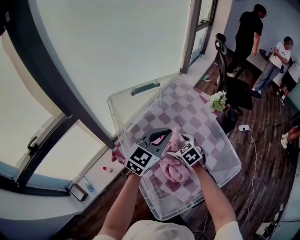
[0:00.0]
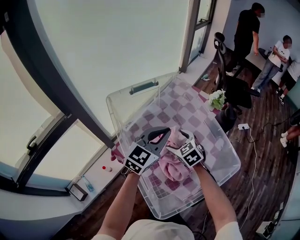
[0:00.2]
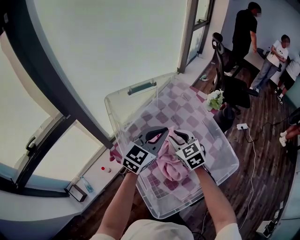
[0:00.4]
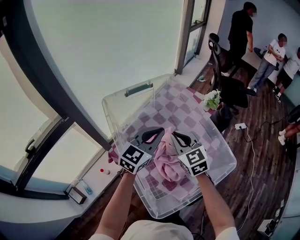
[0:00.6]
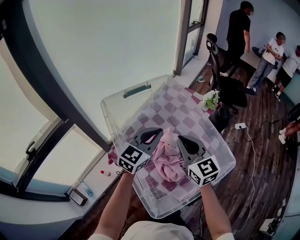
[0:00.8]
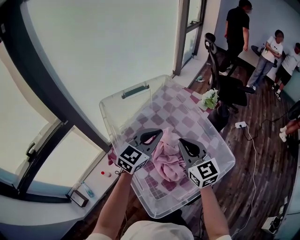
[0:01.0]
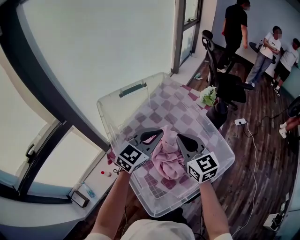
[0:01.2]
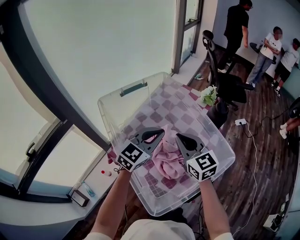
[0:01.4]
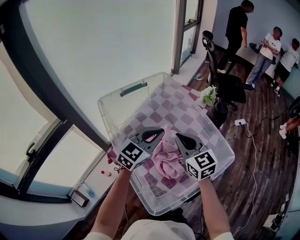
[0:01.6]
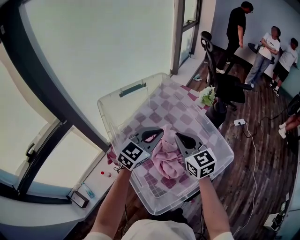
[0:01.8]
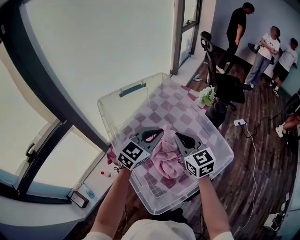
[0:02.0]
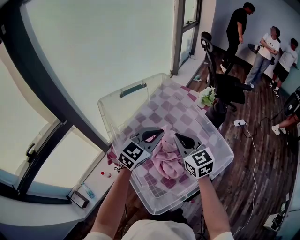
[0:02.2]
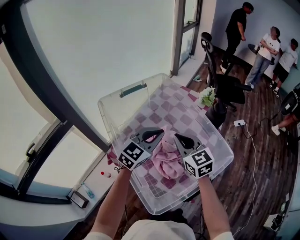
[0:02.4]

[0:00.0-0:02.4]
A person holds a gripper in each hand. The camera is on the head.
0:00.0 to 0:01.2: The right gripper goes roughly 20 cm upward, tips its fingers upward by some 40 degrees, and closes.
0:01.2 to 0:02.4: The grippers make only small movements.

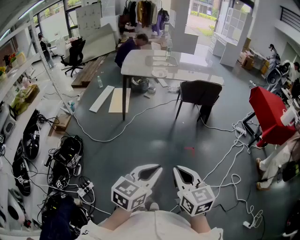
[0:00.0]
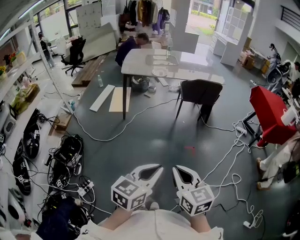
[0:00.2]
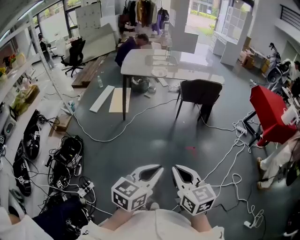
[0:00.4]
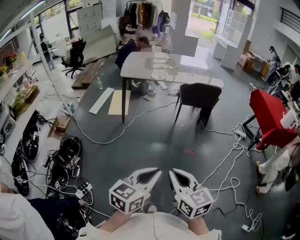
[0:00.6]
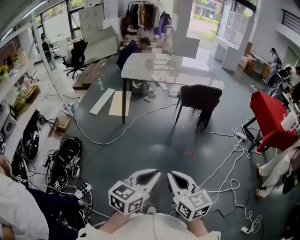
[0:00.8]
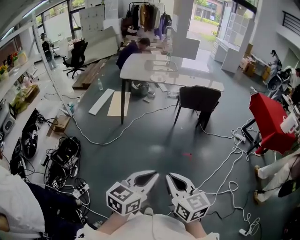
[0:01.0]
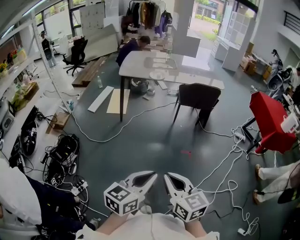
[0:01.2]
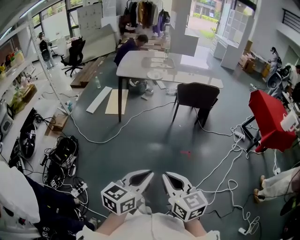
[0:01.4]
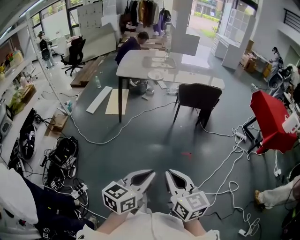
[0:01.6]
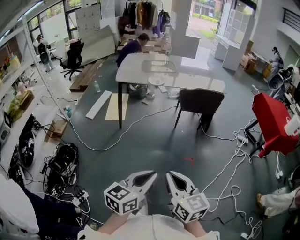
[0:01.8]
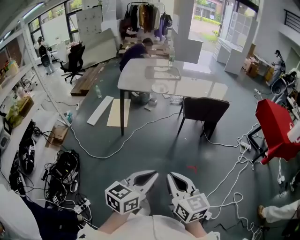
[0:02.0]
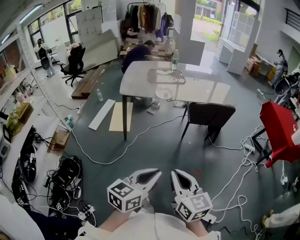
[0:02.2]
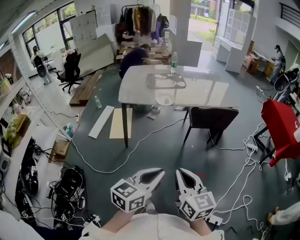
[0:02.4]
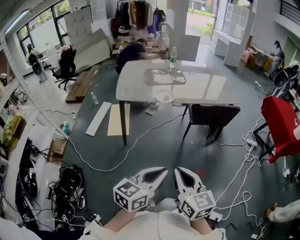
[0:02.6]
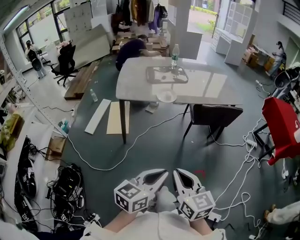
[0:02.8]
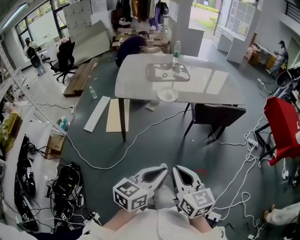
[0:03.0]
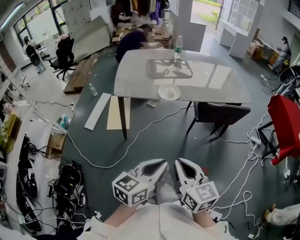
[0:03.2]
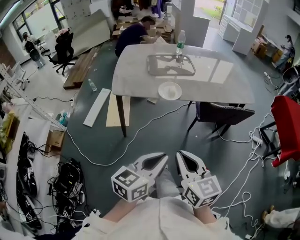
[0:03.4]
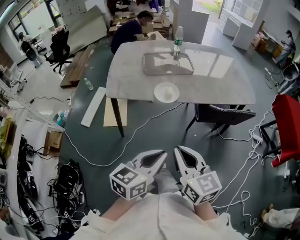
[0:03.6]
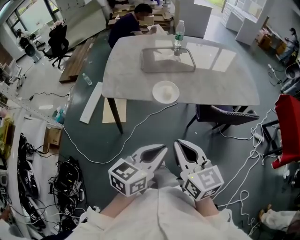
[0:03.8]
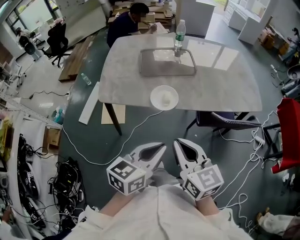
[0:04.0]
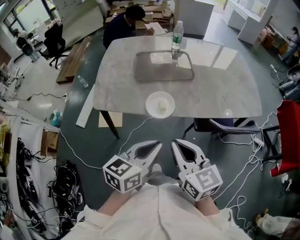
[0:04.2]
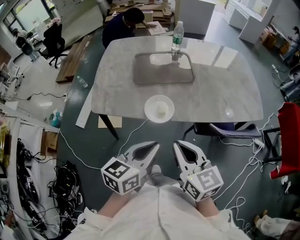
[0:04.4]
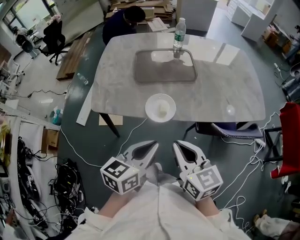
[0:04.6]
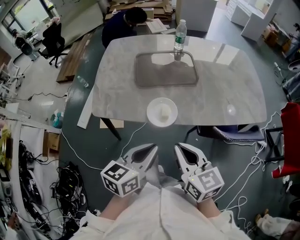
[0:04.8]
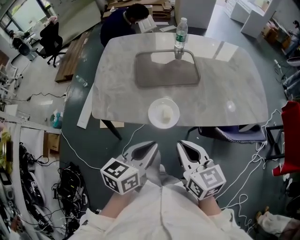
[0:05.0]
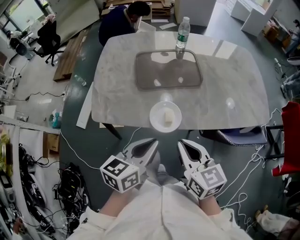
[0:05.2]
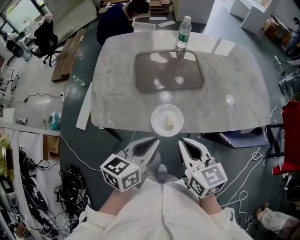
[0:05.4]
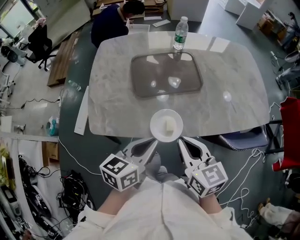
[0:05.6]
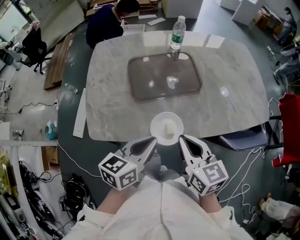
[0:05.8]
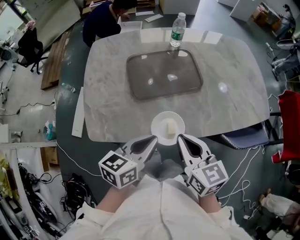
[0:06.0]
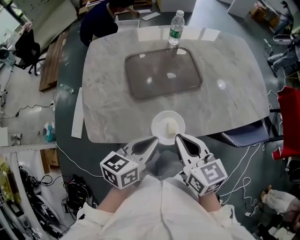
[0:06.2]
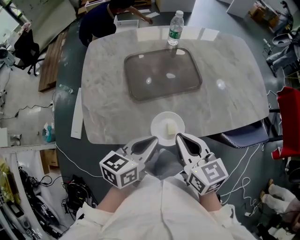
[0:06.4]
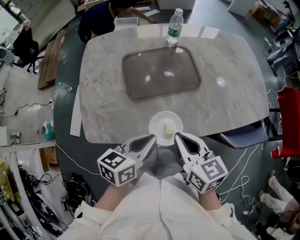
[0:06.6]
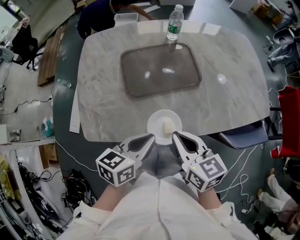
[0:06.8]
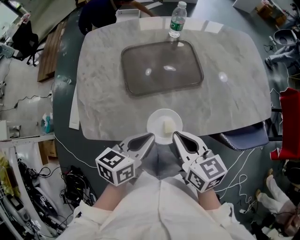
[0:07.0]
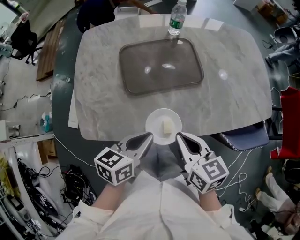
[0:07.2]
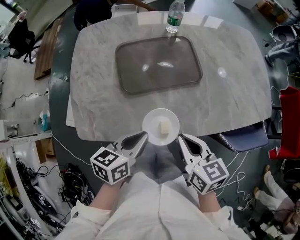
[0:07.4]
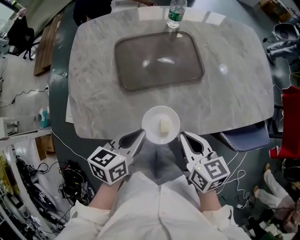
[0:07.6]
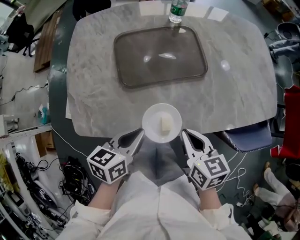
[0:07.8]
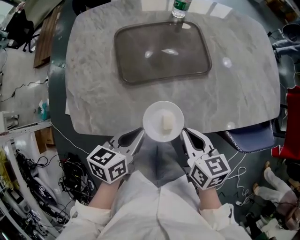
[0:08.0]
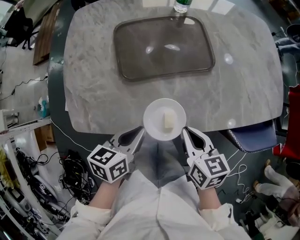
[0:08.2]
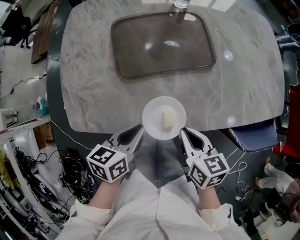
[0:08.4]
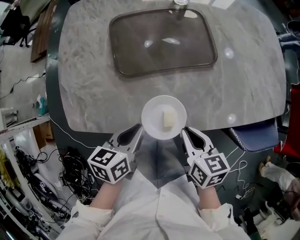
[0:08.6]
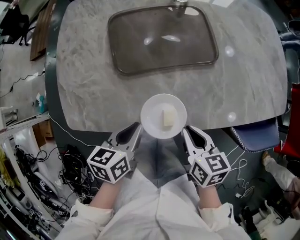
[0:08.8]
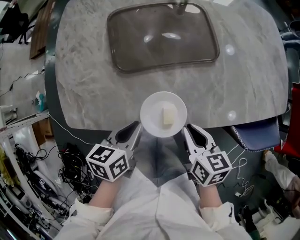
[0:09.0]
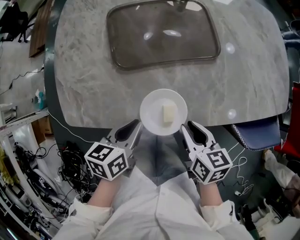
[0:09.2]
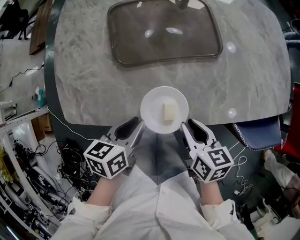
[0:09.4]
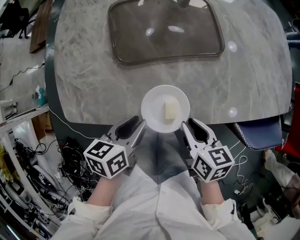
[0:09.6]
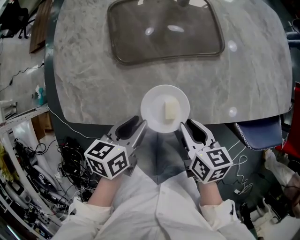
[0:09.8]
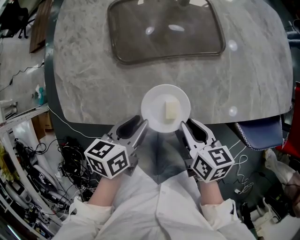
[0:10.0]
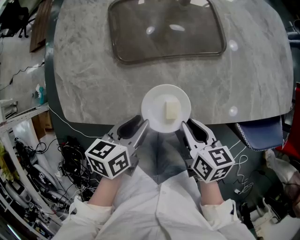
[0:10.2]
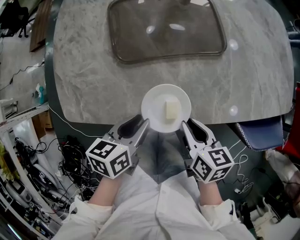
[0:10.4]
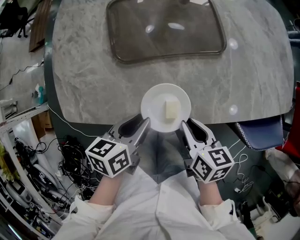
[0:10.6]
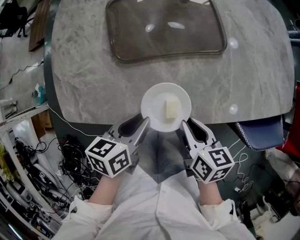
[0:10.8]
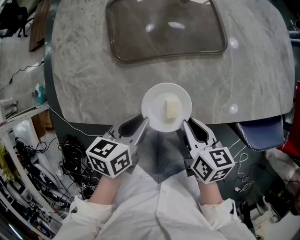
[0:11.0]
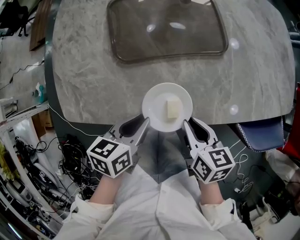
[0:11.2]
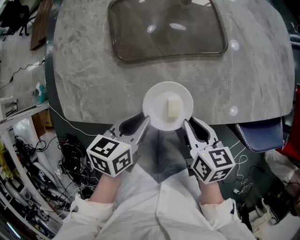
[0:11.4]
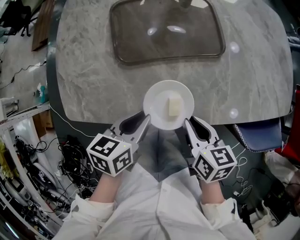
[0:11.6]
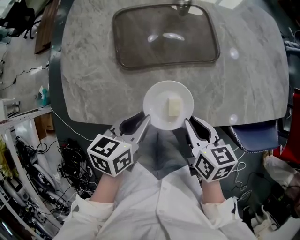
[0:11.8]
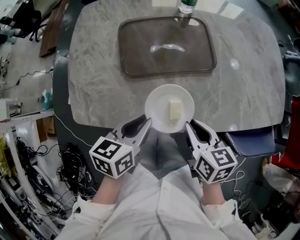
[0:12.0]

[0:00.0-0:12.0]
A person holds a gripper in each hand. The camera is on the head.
0:00.0 to 0:01.6: There are only small adjustments of the grippers.
0:01.6 to 0:03.0: Both grippers travel together forward and to the left, roughly 25 cm.
0:03.0 to 0:04.4: Both grippers move forward, roughly 25 cm.
0:04.4 to 0:06.0: The right gripper shifts approximately 10 cm forward. The left gripper shifts approximately 15 cm forward and to the left.
0:06.0 to 0:07.6: The right gripper travels downward by approximately 5 cm. Meanwhile the left gripper changes place by roughly 5 cm.
0:07.6 to 0:09.0: The grippers both shift downward by about 5 cm.
0:09.0 to 0:10.4: The left gripper opens.
0:10.4 to 0:12.0: The right gripper changes place by some 5 cm. The left gripper shifts some 5 cm upward.

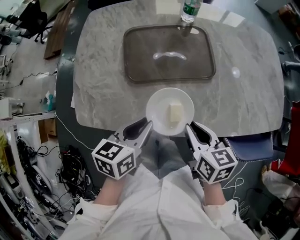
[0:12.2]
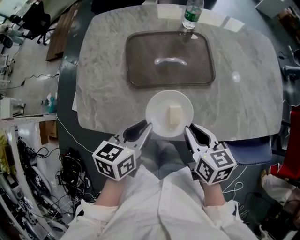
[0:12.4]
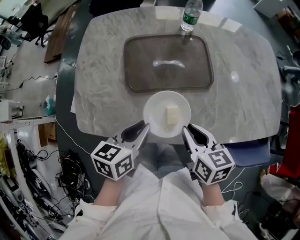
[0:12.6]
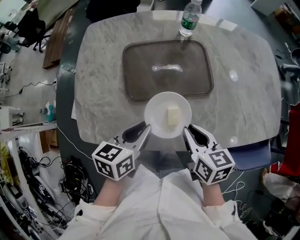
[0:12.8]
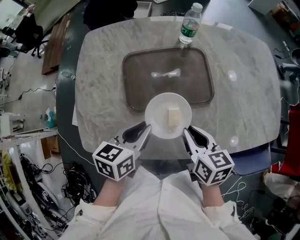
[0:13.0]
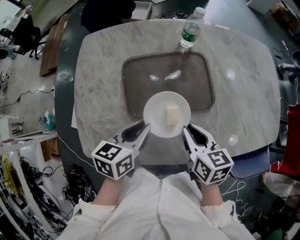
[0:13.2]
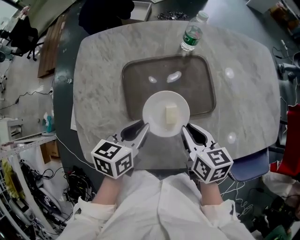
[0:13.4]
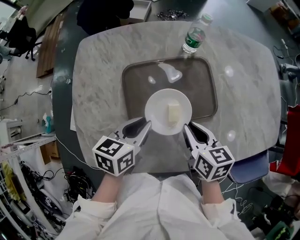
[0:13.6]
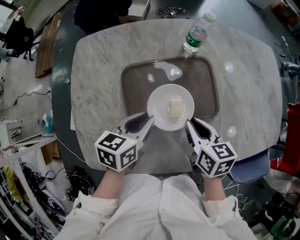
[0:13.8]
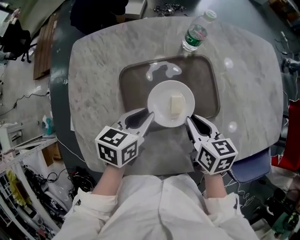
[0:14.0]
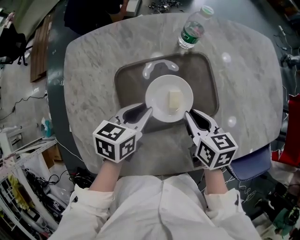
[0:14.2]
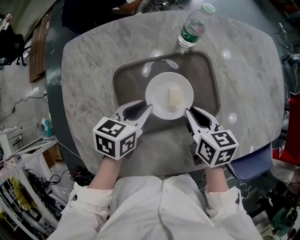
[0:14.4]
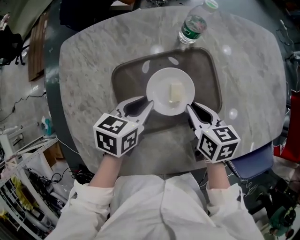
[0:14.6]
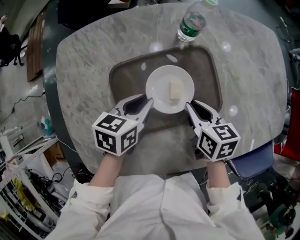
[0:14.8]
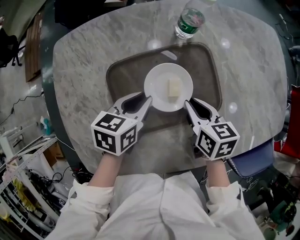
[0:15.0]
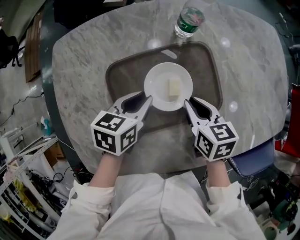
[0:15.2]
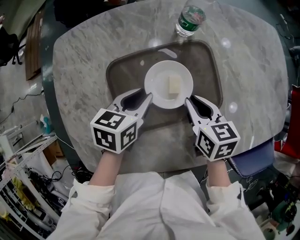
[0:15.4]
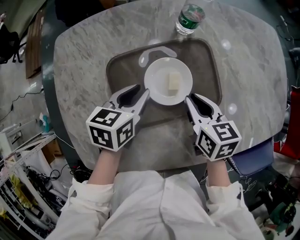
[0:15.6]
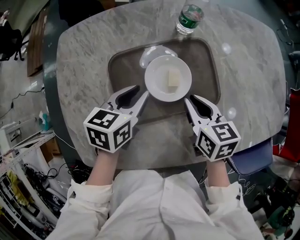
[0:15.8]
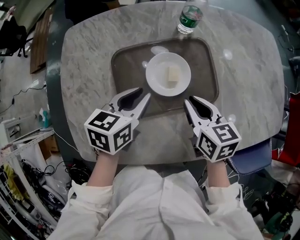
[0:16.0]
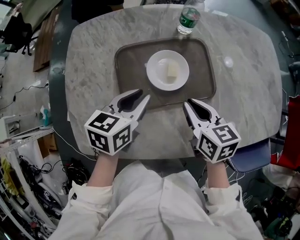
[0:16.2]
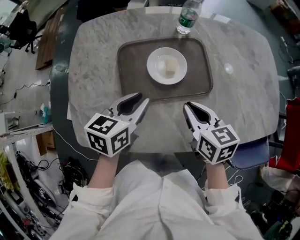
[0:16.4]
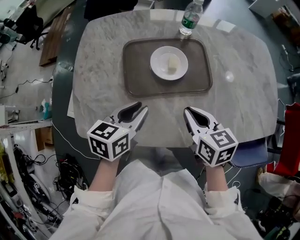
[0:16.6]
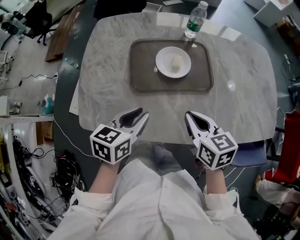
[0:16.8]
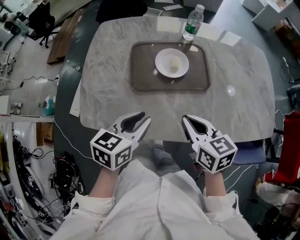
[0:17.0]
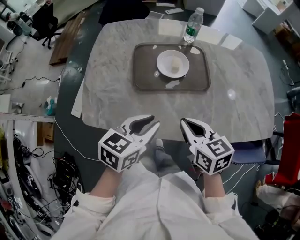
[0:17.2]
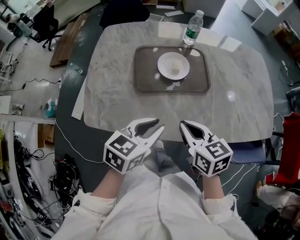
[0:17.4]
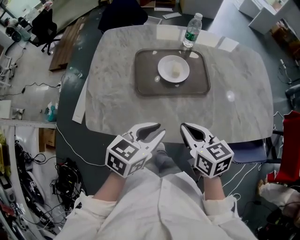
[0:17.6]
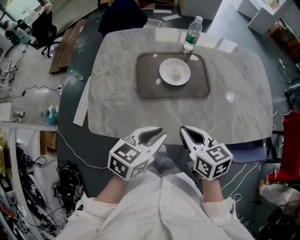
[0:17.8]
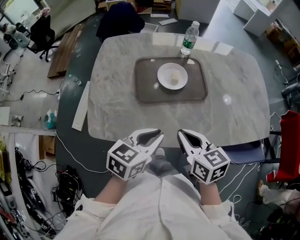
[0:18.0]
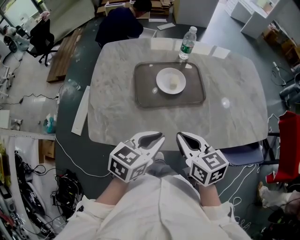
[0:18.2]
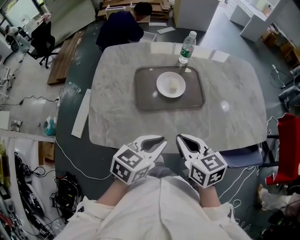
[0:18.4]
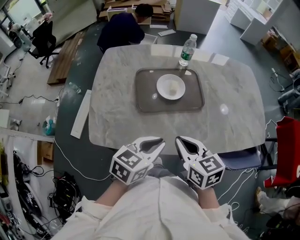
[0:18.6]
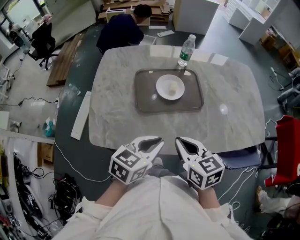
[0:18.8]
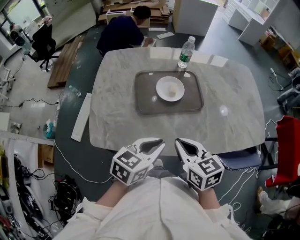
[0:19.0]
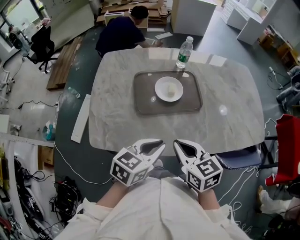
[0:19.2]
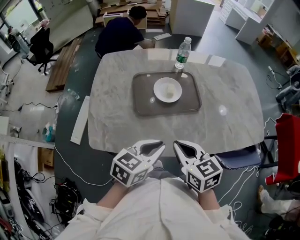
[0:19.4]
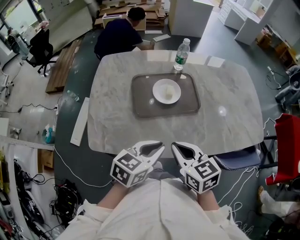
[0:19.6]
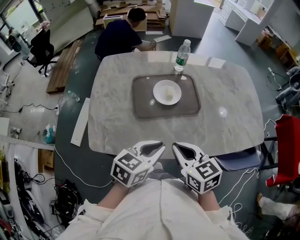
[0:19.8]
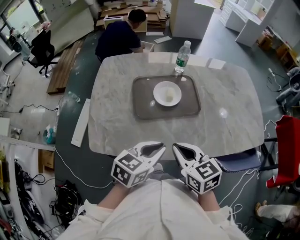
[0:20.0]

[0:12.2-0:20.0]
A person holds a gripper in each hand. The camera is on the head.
0:12.2 to 0:13.8: Both grippers move forward, roughly 15 cm.
0:13.8 to 0:15.4: Both grippers move forward, some 5 cm.
0:15.4 to 0:16.8: The right gripper goes about 15 cm backward and upward, while the left gripper moves backward, about 20 cm.
0:16.8 to 0:18.4: The left gripper moves to the right and backward, some 10 cm. Meanwhile the right gripper changes place by approximately 10 cm.
0:18.4 to 0:20.0: There are only small adjustments of the grippers.

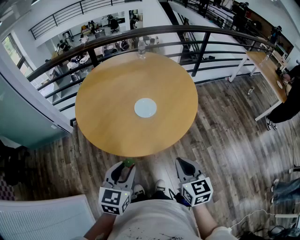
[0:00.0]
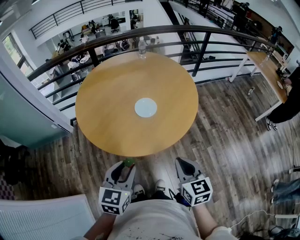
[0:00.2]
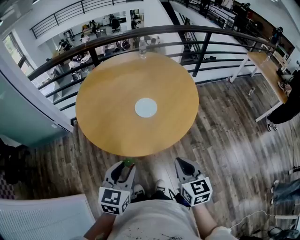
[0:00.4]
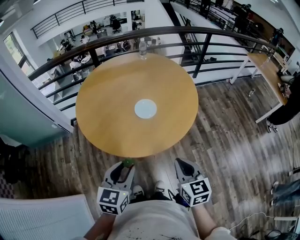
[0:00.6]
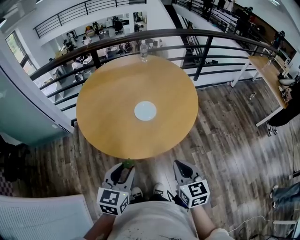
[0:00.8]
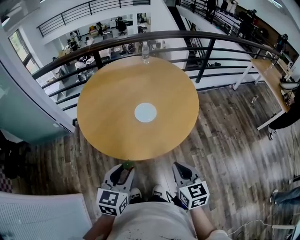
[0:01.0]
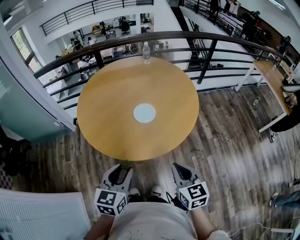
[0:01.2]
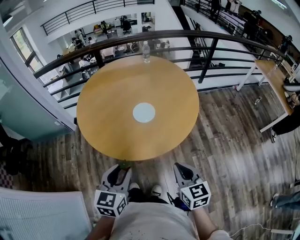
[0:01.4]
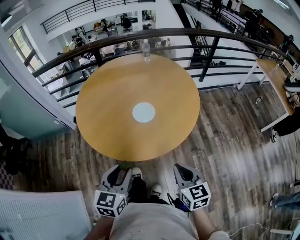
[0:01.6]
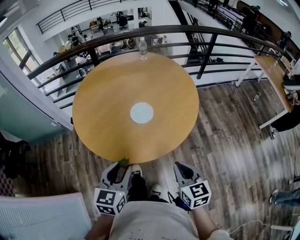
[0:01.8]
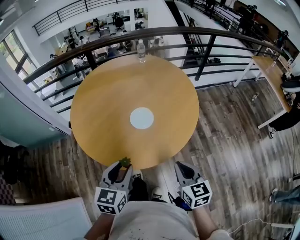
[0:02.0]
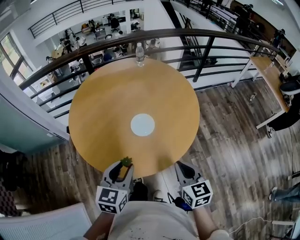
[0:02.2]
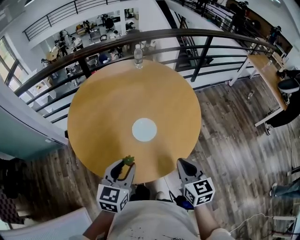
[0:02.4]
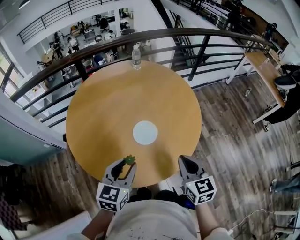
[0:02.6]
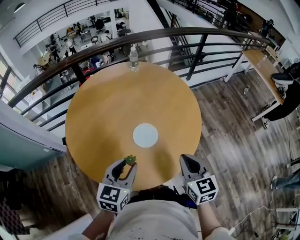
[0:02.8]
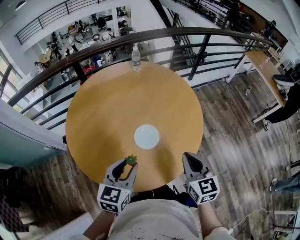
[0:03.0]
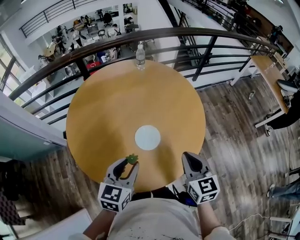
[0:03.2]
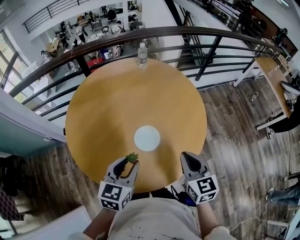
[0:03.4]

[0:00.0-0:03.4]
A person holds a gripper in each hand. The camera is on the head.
0:00.0 to 0:01.6: The right gripper ends up about 5 cm from where it was.
0:01.6 to 0:03.4: The grippers both shift forward by approximately 25 cm.
